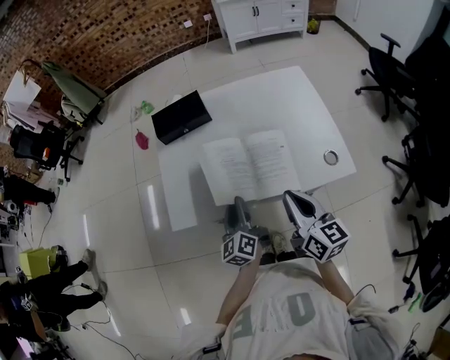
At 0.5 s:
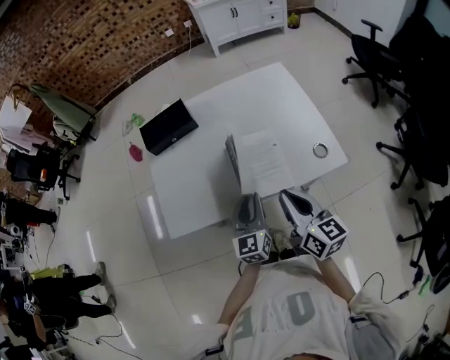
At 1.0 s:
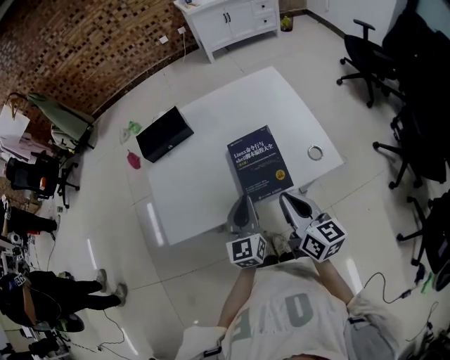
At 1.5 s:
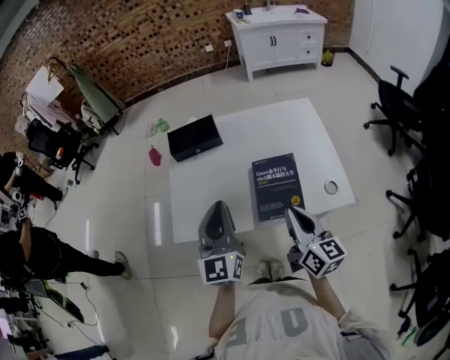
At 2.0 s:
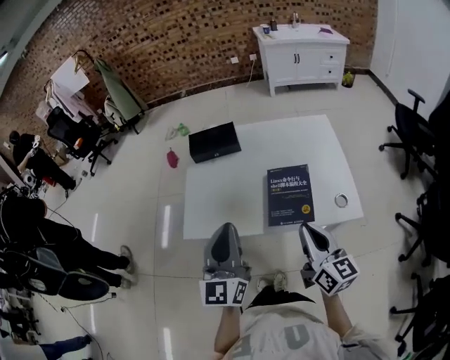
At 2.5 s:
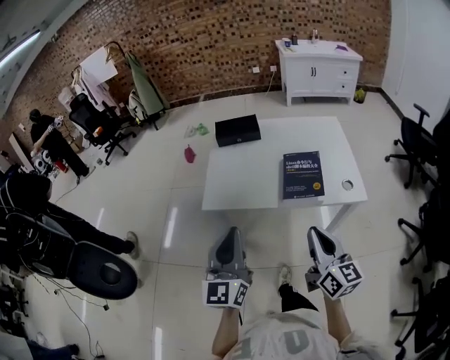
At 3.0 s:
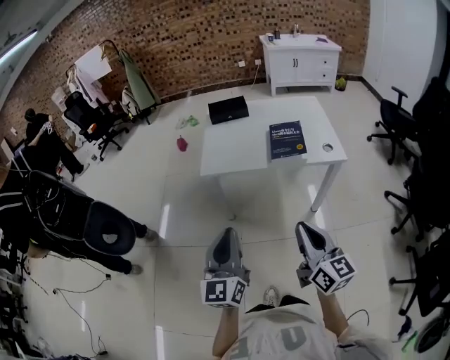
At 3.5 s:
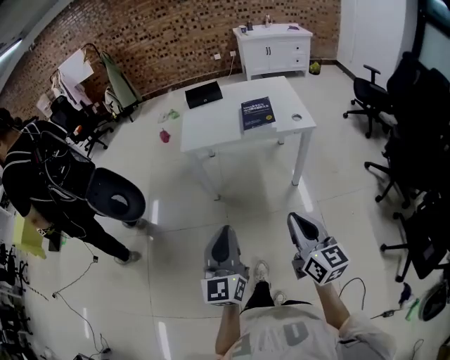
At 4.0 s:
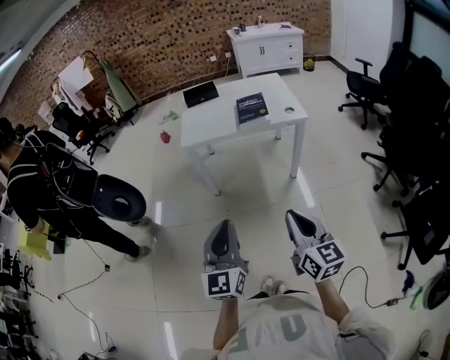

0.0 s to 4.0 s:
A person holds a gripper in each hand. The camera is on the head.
0.0 to 2.0 s: The left gripper moves upward, some 20 cm, swivels about 40 degrees, and closes. Meanwhile the right gripper changes place by roughly 5 cm.
2.0 to 4.0 s: The two grippers travel together, backward, roughly 60 cm.

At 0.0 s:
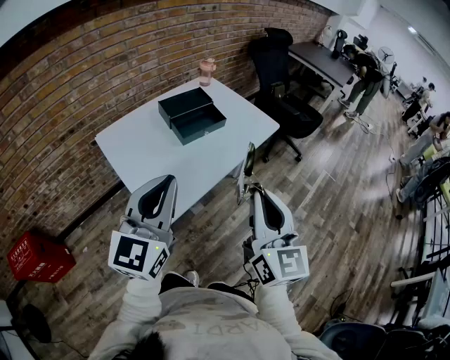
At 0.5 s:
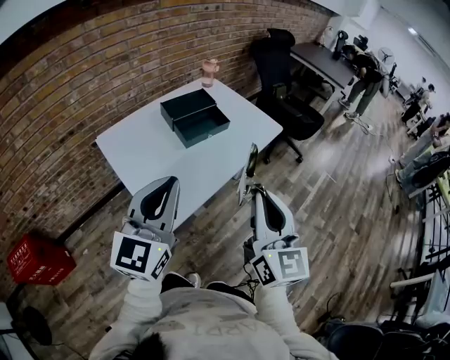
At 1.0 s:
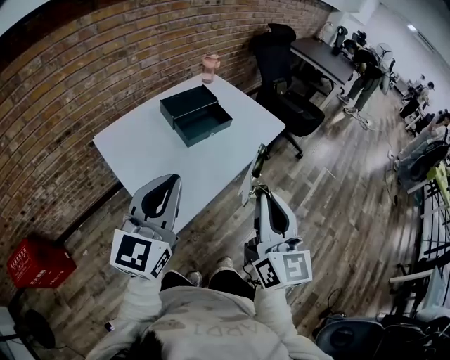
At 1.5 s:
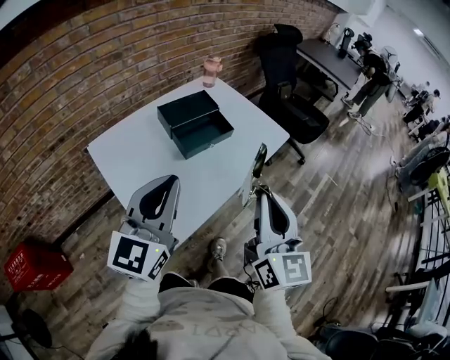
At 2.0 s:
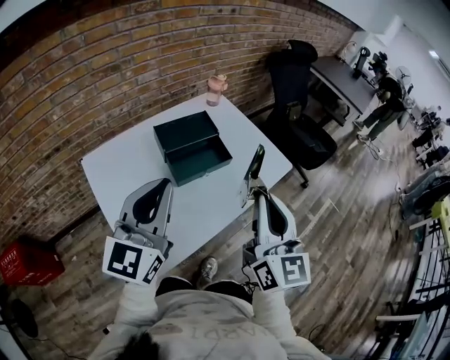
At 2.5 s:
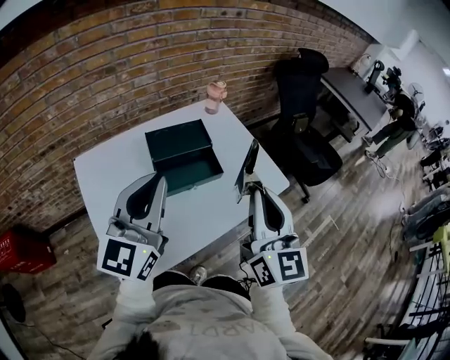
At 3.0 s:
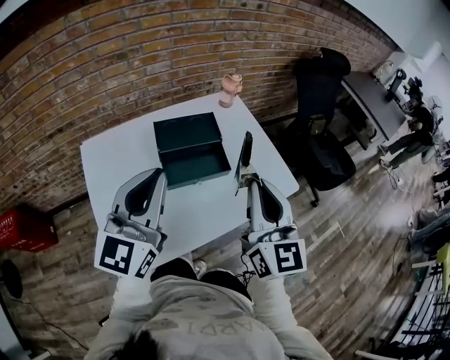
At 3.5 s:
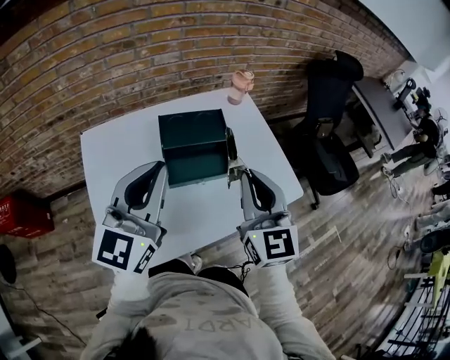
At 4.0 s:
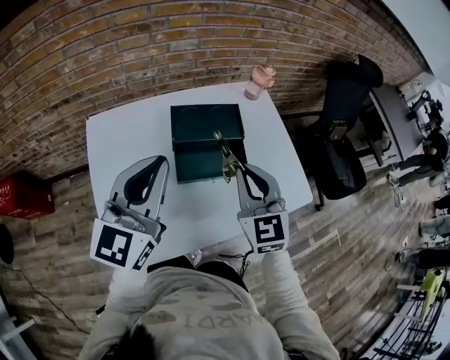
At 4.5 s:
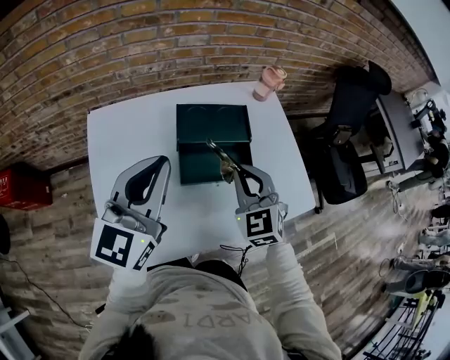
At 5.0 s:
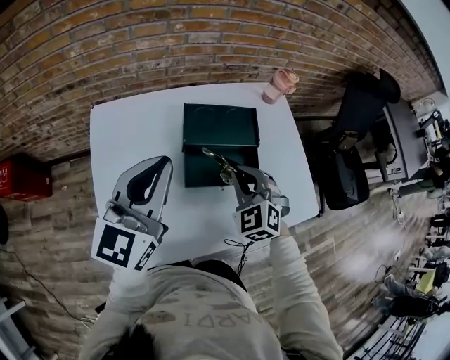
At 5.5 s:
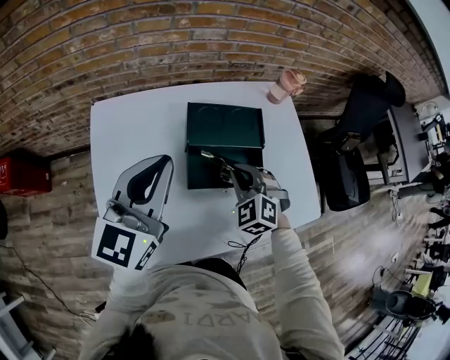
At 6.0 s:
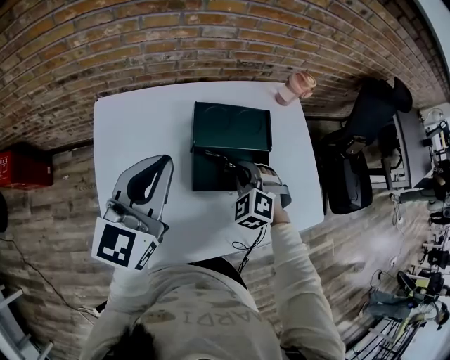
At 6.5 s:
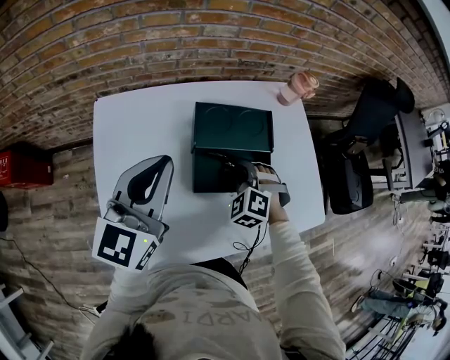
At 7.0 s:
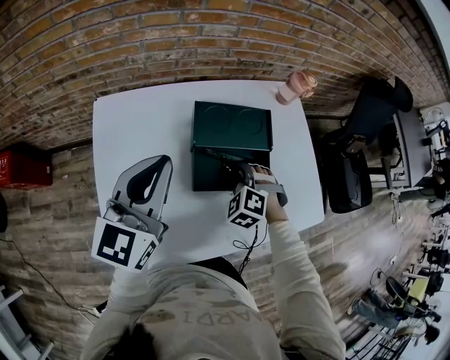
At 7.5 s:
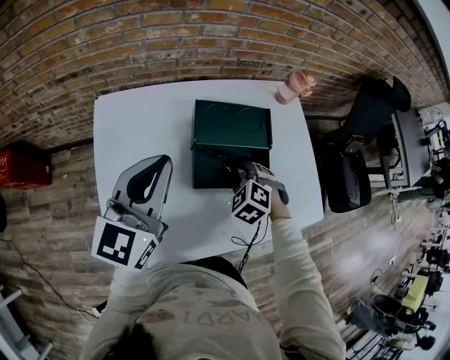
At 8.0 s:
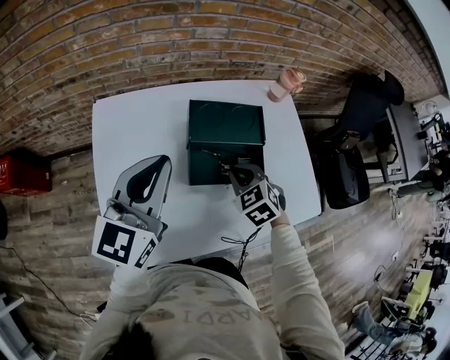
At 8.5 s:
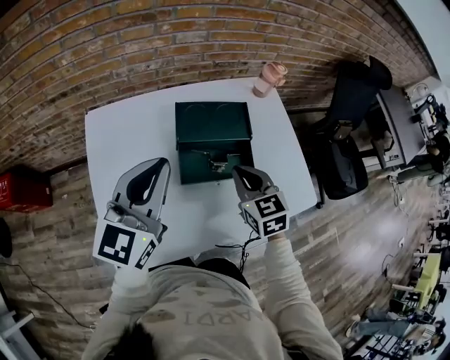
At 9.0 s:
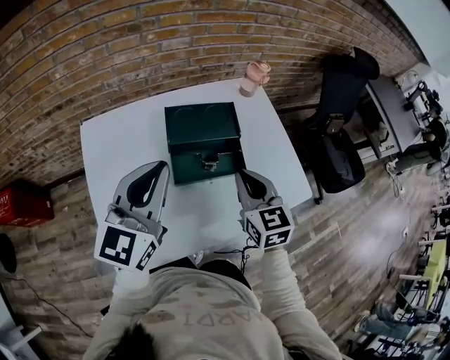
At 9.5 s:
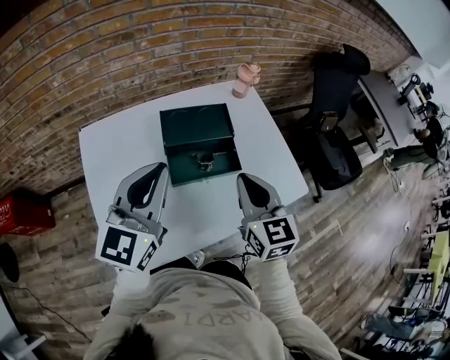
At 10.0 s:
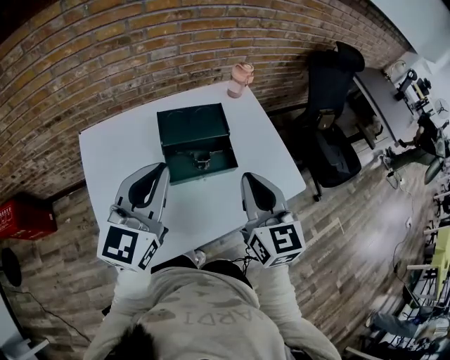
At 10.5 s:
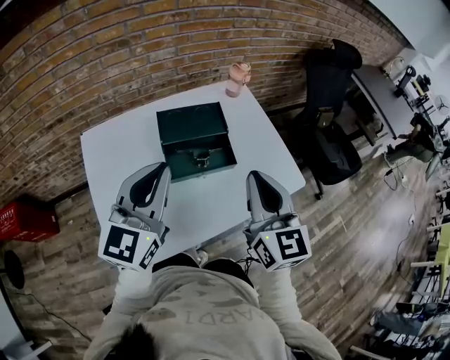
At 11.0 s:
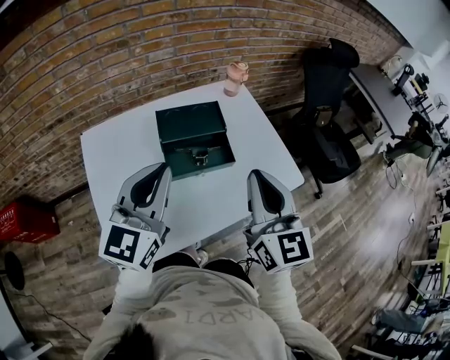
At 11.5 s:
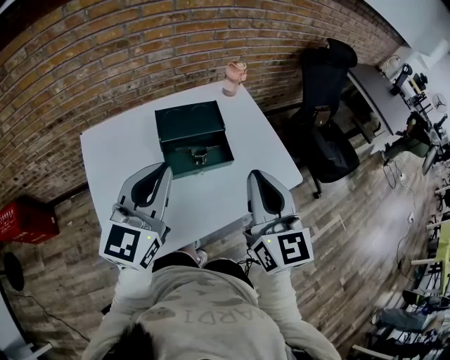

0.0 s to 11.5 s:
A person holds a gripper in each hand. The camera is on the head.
0.0 to 2.0 s: The grippers both shift forward by about 25 cm.
2.0 to 4.0 s: The left gripper moves forward, roughly 10 cm. Meanwhile the right gripper heads forward and downward, covering some 25 cm, and changes its angle by some 40 degrees.
4.0 to 6.0 s: The left gripper heads forward, to the left and downward, covering about 10 cm, while the right gripper moves downward and forward, approximately 20 cm, and tilts its fingers roughly 30 degrees downward.
6.0 to 7.5 s: The grippers stay close to where they were, moving slightly.
7.5 to 9.5 s: The left gripper shifts approximately 10 cm to the right and backward. Meanwhile the right gripper goes about 25 cm upward and backward, angles its fingers upward, by roughly 40 degrees, and closes up.
9.5 to 11.5 s: The right gripper heads upward and backward, covering about 10 cm. Meanwhile the left gripper changes place by approximately 5 cm.

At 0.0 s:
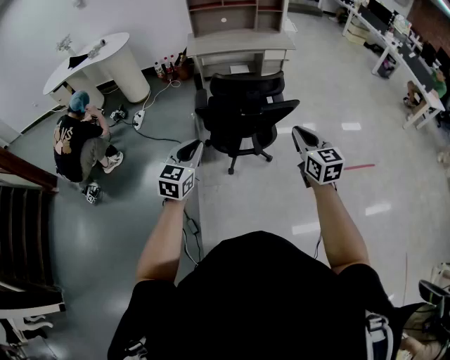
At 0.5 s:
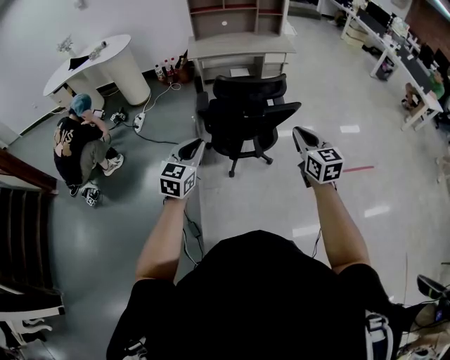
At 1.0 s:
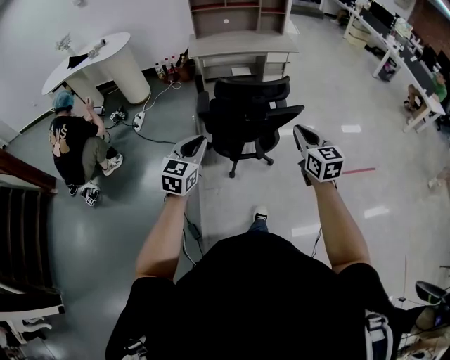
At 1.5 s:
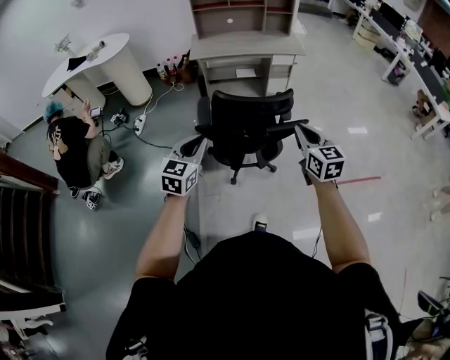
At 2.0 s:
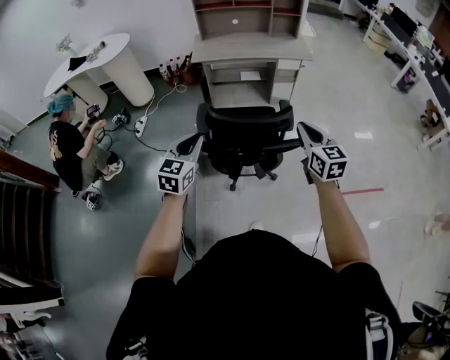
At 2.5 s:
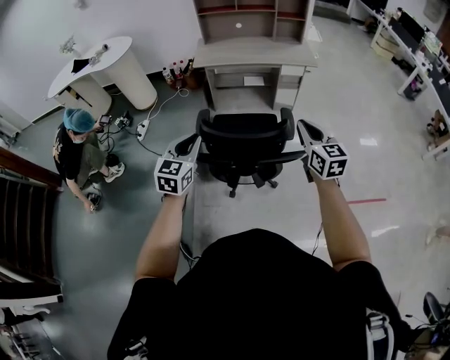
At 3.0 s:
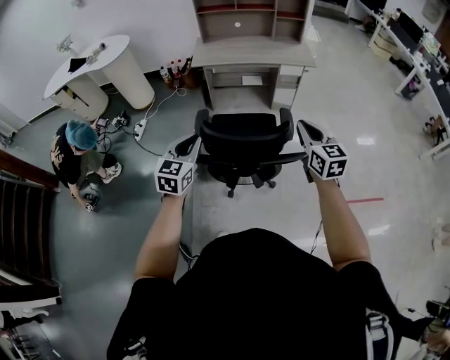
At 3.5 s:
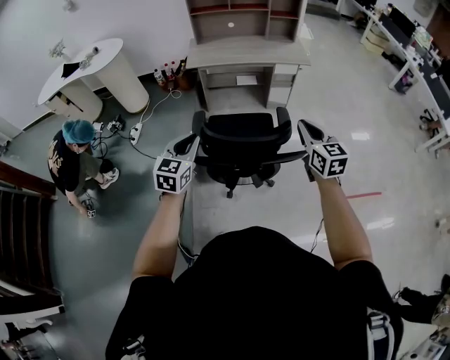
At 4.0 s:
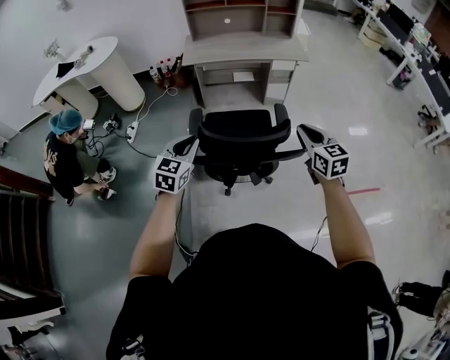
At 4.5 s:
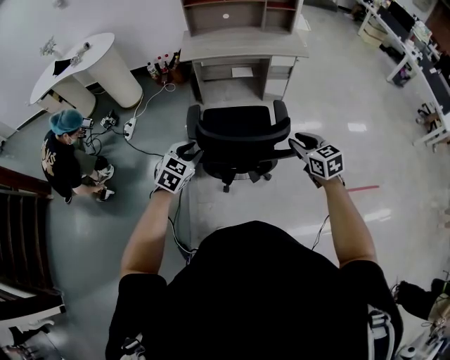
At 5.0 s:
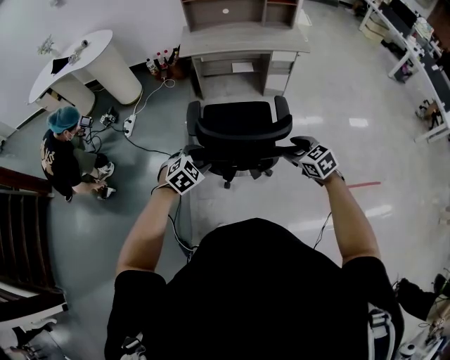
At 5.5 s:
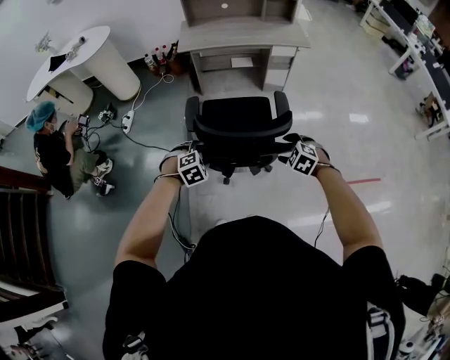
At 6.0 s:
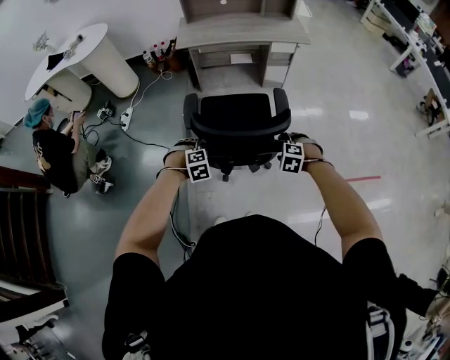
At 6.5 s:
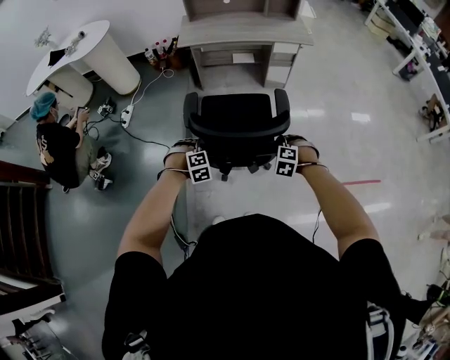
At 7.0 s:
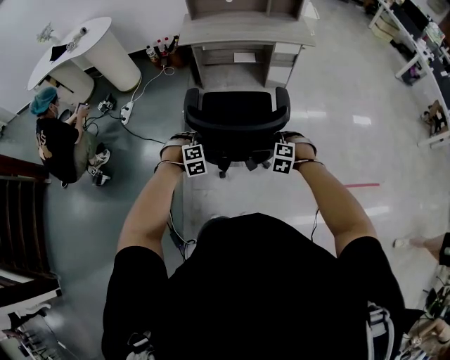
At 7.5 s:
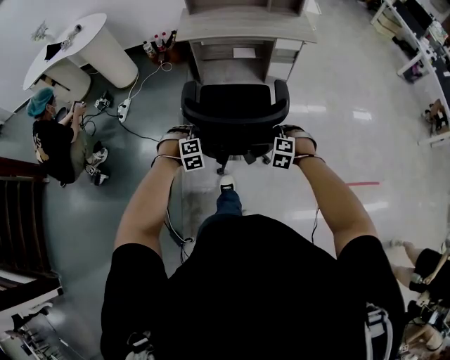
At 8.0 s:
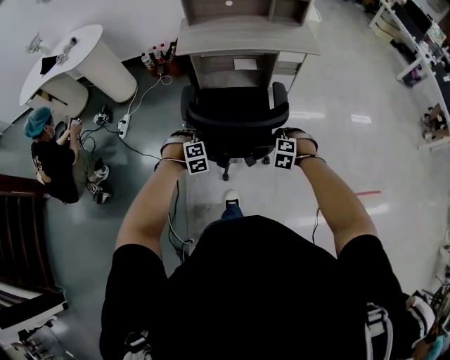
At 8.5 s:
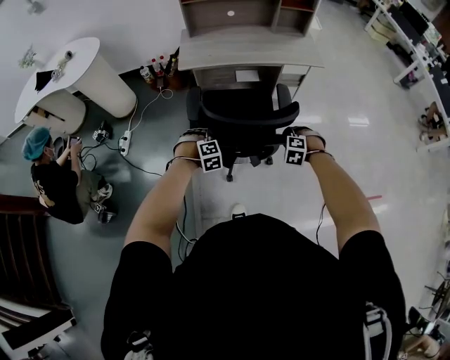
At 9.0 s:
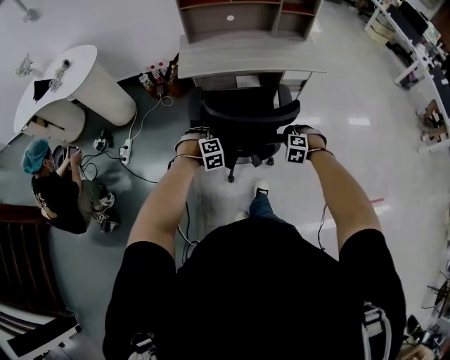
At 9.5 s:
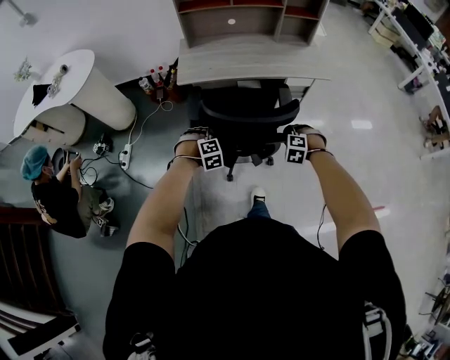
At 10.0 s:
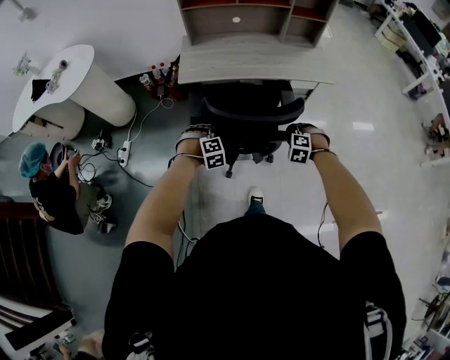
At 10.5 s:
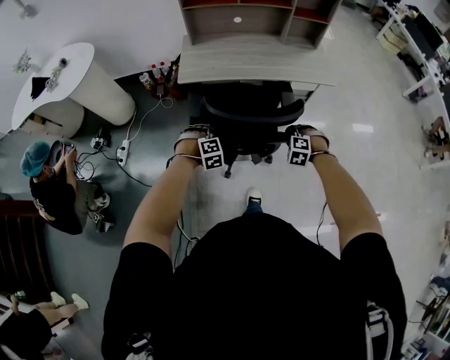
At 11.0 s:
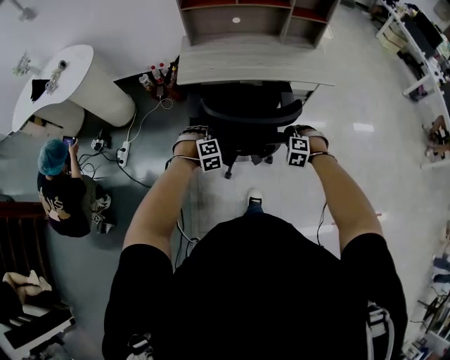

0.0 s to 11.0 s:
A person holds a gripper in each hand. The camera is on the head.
0.0 to 2.0 s: The grippers both shift forward by roughly 25 cm.
2.0 to 3.5 s: Both grippers travel together forward, approximately 5 cm.
3.5 to 5.5 s: The two grippers go roughly 25 cm downward. The left gripper points its fingers roughly 50 degrees further downward, and opens up, while the right gripper tips its fingers downward by roughly 50 degrees, and opens.
5.5 to 7.5 s: The left gripper heads forward, covering some 10 cm, and closes, while the right gripper travels forward and downward by roughly 10 cm, rotates about 20 degrees, and closes.
7.5 to 9.0 s: The grippers both shift forward by some 30 cm.
9.0 to 11.0 s: Both grippers move forward, approximately 10 cm.
